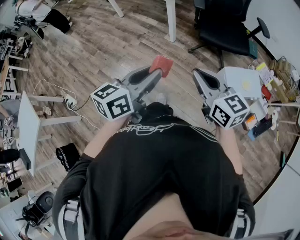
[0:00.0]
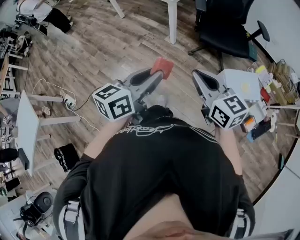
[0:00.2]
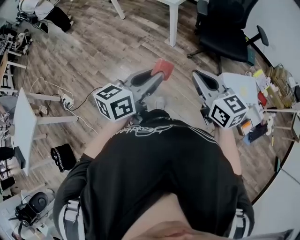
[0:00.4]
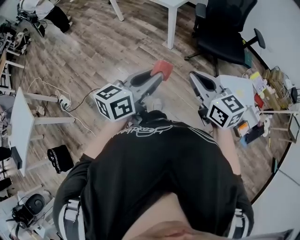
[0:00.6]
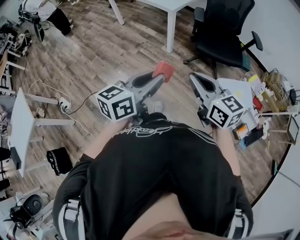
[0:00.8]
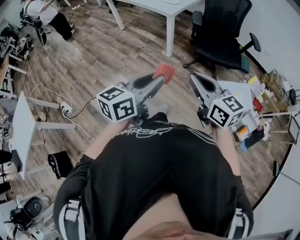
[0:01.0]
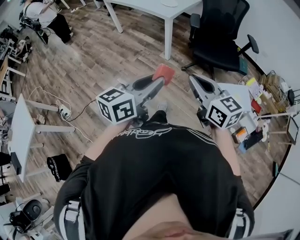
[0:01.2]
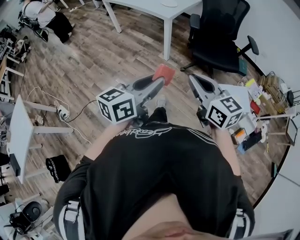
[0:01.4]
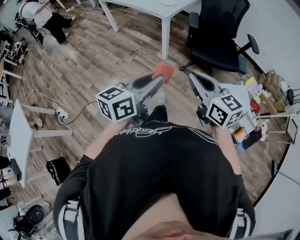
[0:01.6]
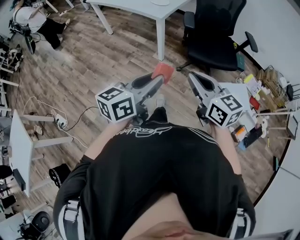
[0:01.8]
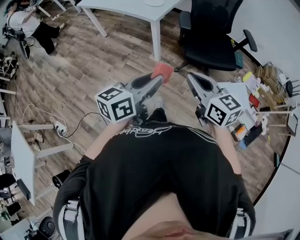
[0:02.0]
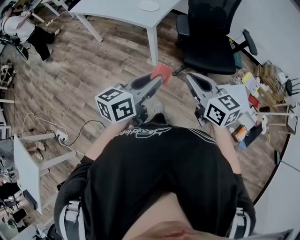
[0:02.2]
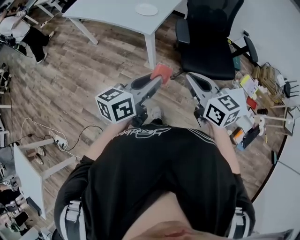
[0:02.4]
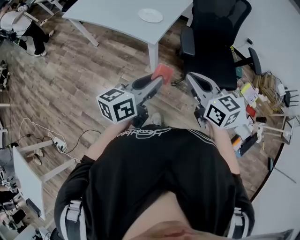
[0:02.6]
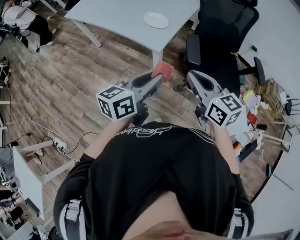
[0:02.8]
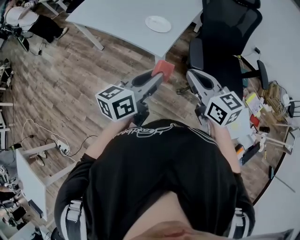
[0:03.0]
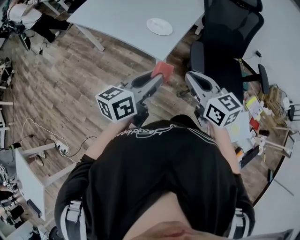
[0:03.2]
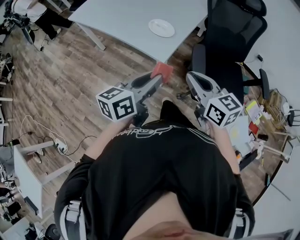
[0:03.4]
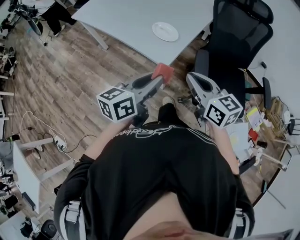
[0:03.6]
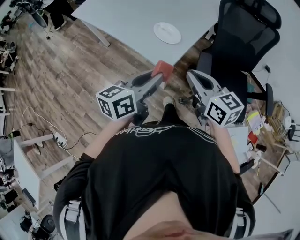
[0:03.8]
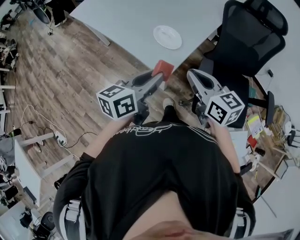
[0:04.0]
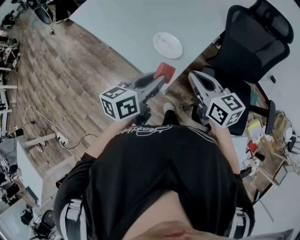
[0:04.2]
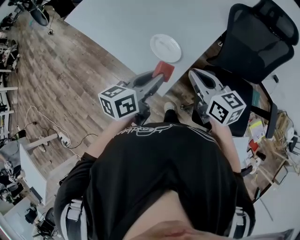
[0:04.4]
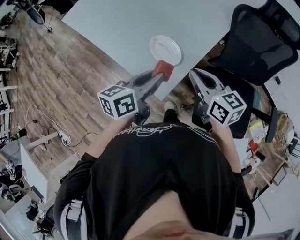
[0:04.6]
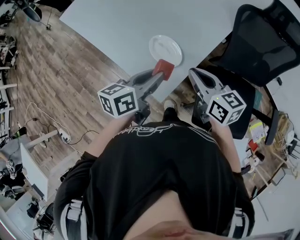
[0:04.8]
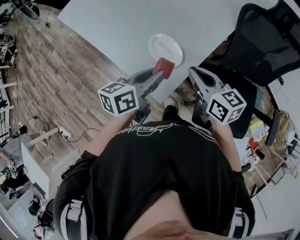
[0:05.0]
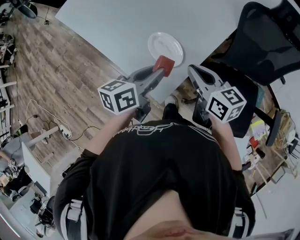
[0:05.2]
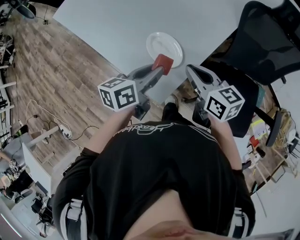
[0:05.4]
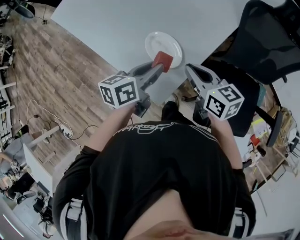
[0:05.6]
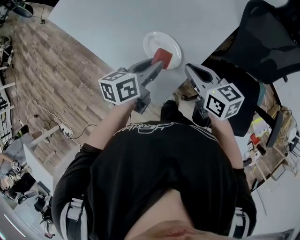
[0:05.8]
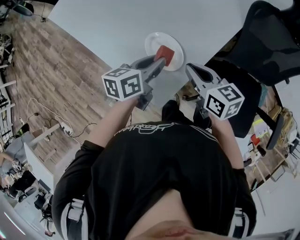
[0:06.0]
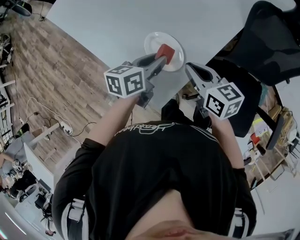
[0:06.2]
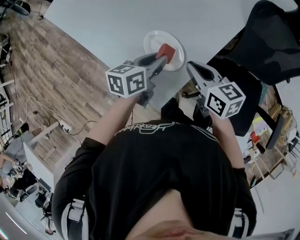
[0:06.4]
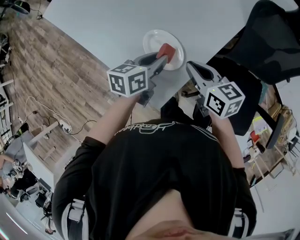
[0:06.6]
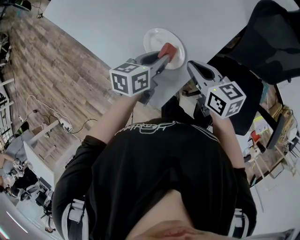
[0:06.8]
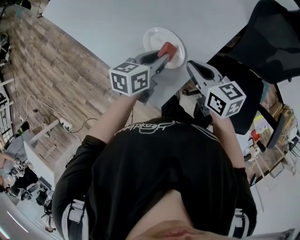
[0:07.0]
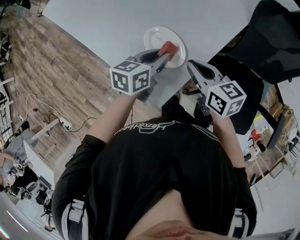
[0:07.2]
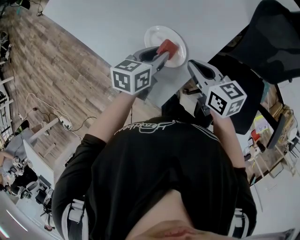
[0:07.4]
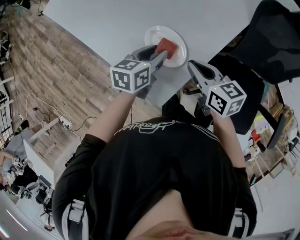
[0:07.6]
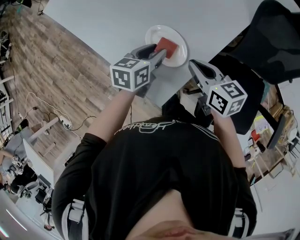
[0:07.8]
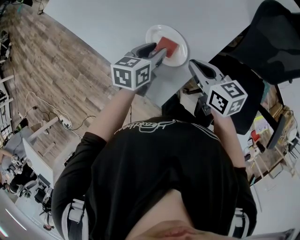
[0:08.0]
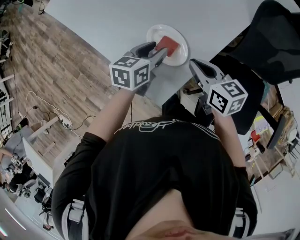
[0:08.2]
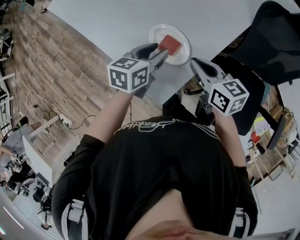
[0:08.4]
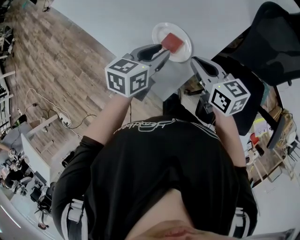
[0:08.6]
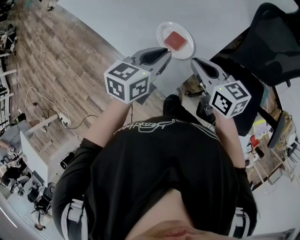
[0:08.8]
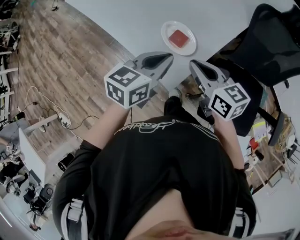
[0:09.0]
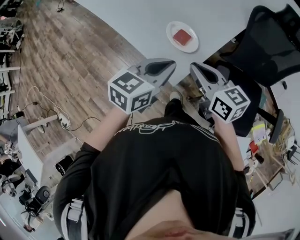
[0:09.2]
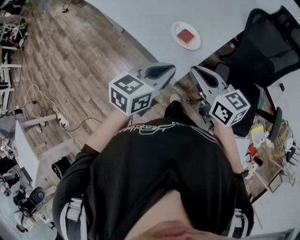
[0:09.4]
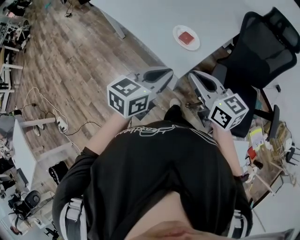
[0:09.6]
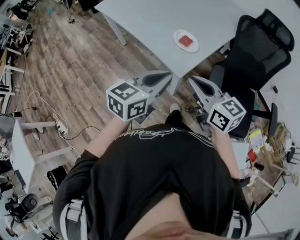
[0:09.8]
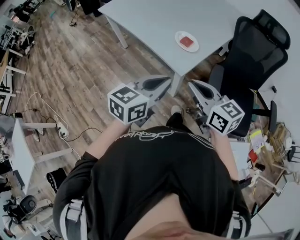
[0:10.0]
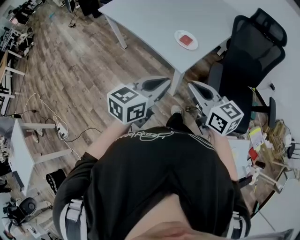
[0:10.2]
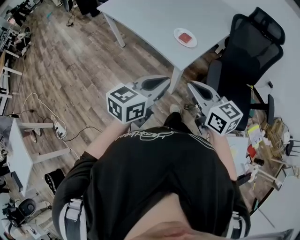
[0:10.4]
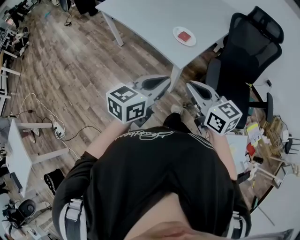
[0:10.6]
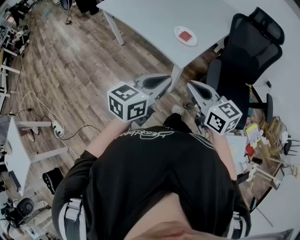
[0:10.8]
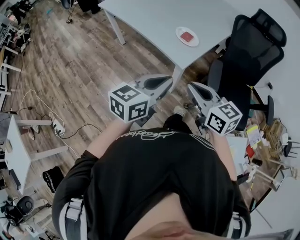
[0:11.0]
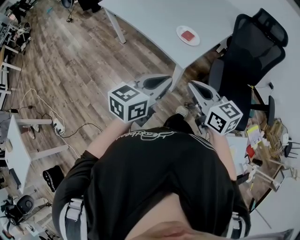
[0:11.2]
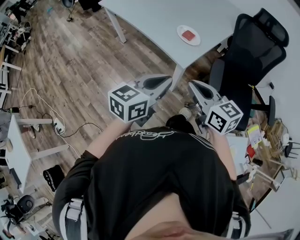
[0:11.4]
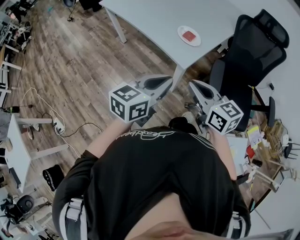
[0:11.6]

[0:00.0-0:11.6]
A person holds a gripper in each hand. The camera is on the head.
0:00.0 to 0:01.4: The grippers stay close to where they were, moving slightly.
0:01.4 to 0:02.8: The two grippers travel together, forward, roughly 40 cm.
0:02.8 to 0:04.4: The grippers both shift forward by approximately 30 cm.
0:04.4 to 0:05.8: The right gripper travels downward and forward by approximately 10 cm. The left gripper goes approximately 15 cm forward and downward.
0:05.8 to 0:07.2: The left gripper travels downward by about 5 cm.
0:07.2 to 0:08.8: The left gripper heads upward, covering some 10 cm, and opens and closes again. The right gripper changes place by some 5 cm.
0:08.8 to 0:10.2: The grippers both shift backward and upward by approximately 30 cm.
0:10.2 to 0:11.6: There are only small adjustments of the grippers.

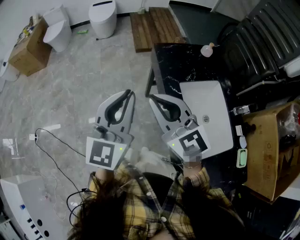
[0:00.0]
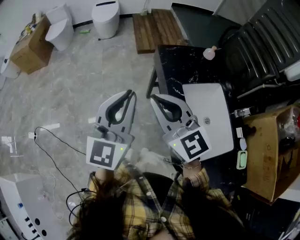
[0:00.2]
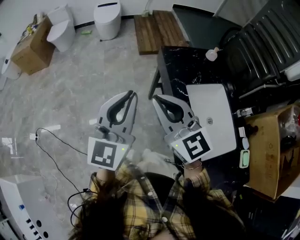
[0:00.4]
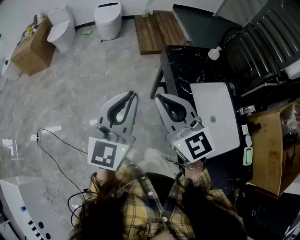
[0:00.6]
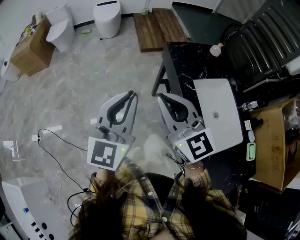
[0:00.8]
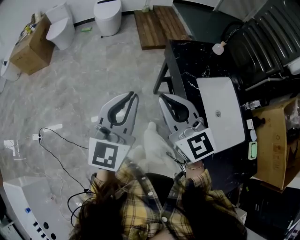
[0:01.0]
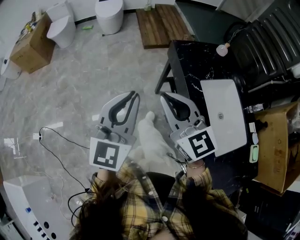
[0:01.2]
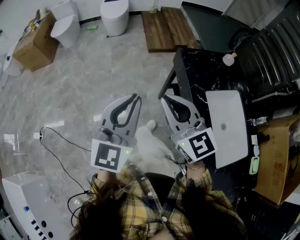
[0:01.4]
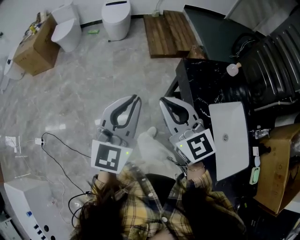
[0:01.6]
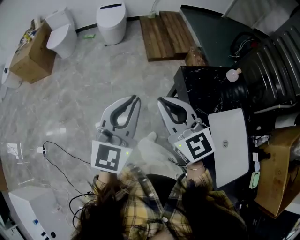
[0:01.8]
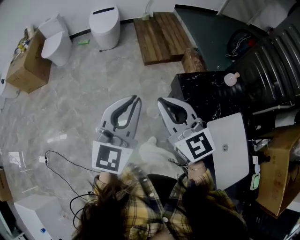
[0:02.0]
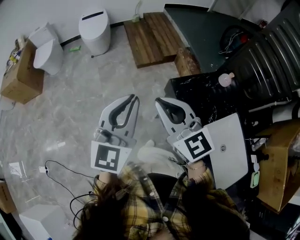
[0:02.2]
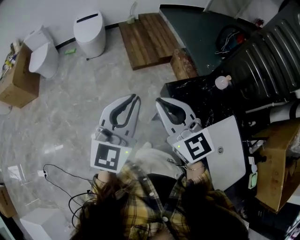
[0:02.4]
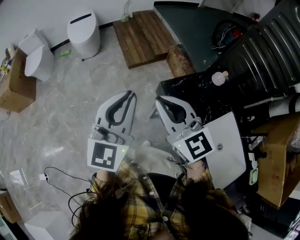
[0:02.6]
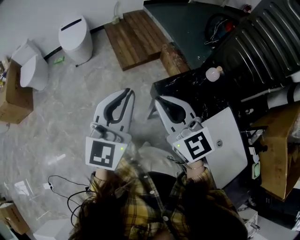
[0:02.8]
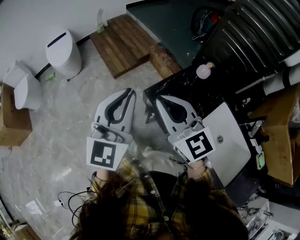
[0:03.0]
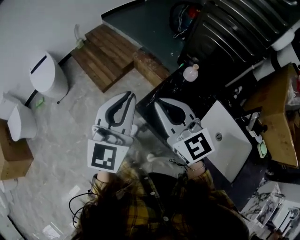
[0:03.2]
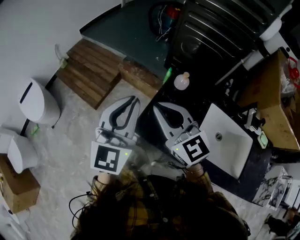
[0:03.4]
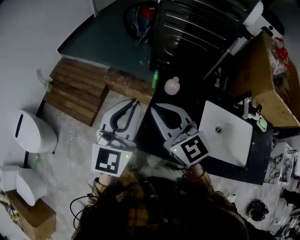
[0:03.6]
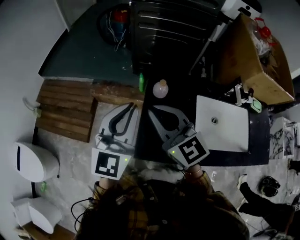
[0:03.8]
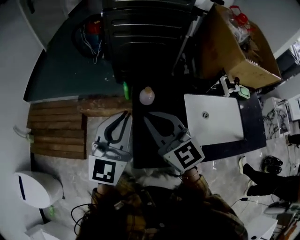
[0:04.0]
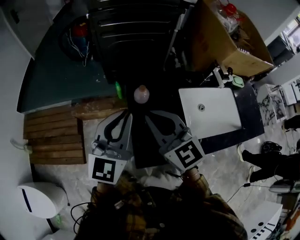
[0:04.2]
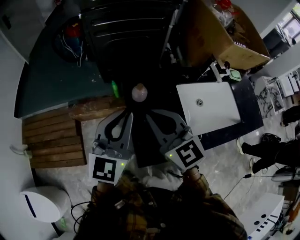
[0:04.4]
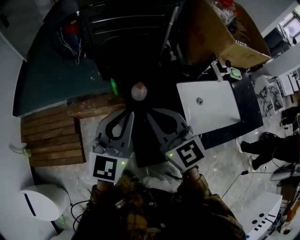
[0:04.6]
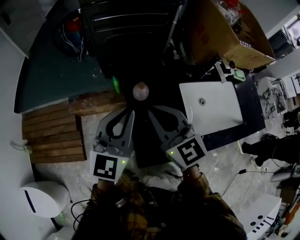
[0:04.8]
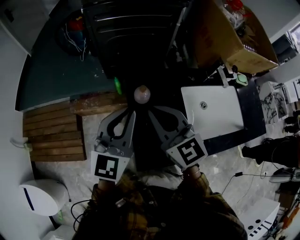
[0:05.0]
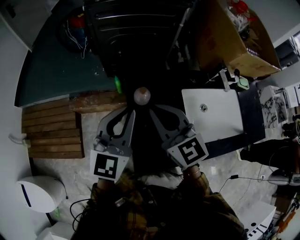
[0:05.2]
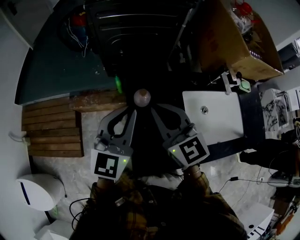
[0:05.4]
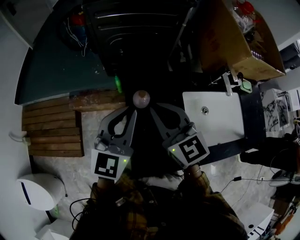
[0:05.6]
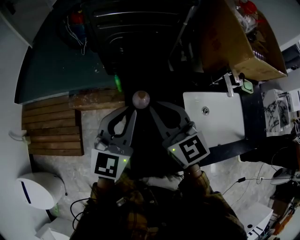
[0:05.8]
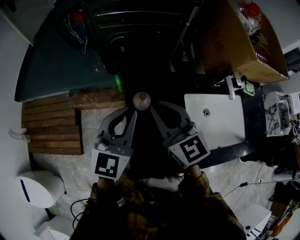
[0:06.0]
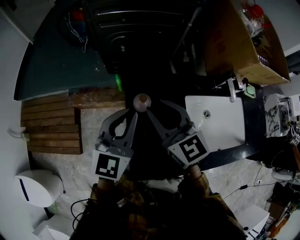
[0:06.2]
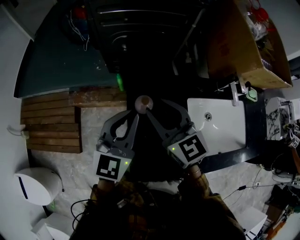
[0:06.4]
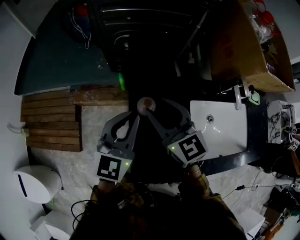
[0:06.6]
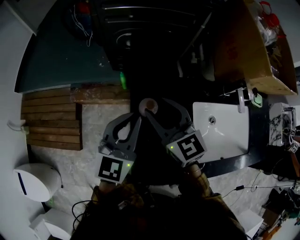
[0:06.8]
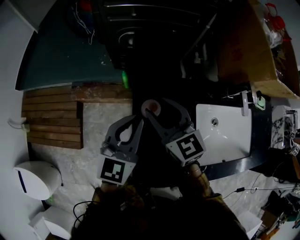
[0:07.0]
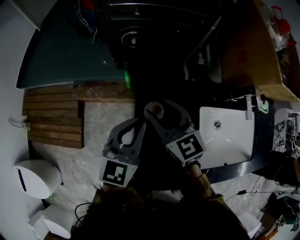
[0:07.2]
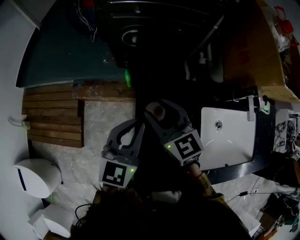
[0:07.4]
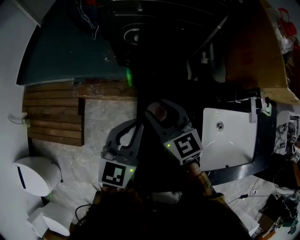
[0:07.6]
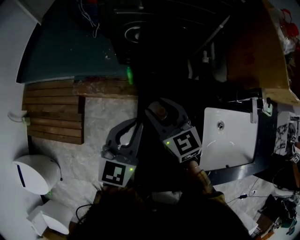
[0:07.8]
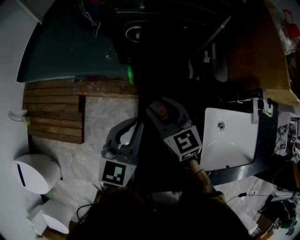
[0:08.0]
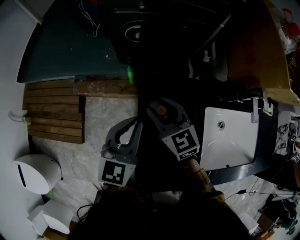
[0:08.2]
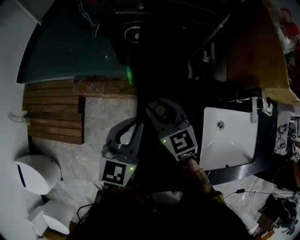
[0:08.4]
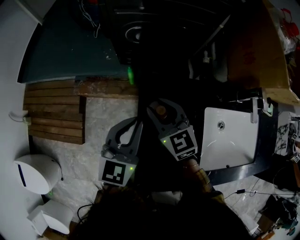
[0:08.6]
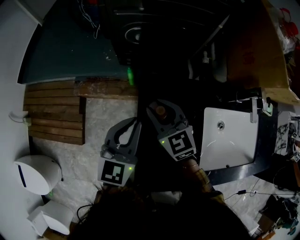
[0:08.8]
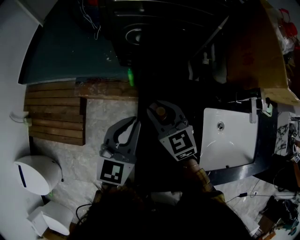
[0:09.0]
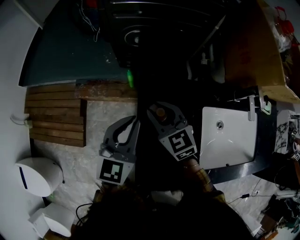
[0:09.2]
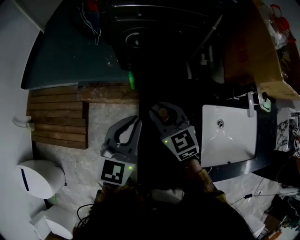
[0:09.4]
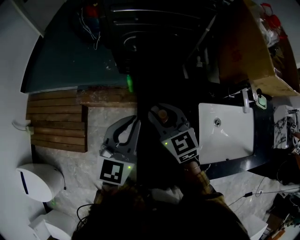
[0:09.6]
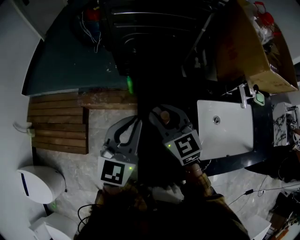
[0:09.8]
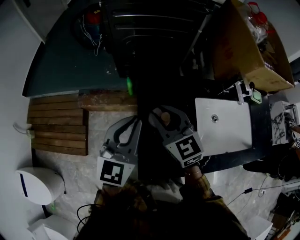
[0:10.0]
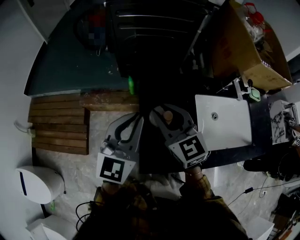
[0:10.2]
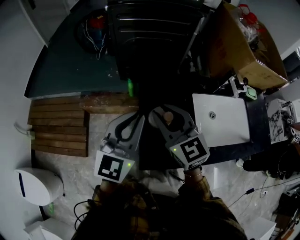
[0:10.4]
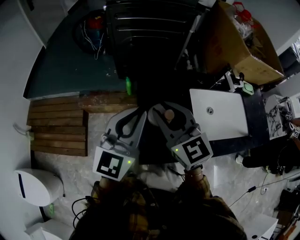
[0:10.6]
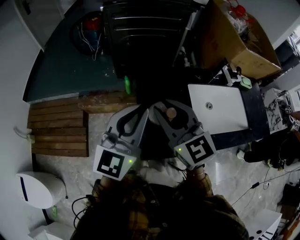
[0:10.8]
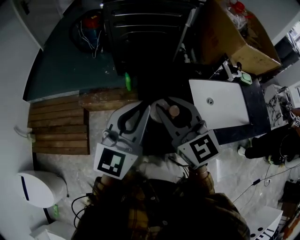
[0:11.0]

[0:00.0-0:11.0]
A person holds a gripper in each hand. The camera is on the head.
0:00.0 to 0:01.6: The right gripper travels forward and to the left by roughly 15 cm. The left gripper goes approximately 15 cm to the left and forward.
0:01.6 to 0:03.2: The left gripper ends up approximately 35 cm from where it was, and changes its angle by approximately 30 degrees. The right gripper moves some 30 cm, and changes its angle by some 30 degrees.
0:03.2 to 0:04.8: The right gripper moves about 20 cm, and swivels roughly 50 degrees. Meanwhile the left gripper changes place by roughly 25 cm, and rotates some 60 degrees.
0:04.8 to 0:06.2: The two grippers go approximately 10 cm forward. The right gripper opens its fingers.
0:06.2 to 0:07.8: The left gripper moves downward, about 10 cm; the right gripper moves downward and forward, roughly 15 cm.
0:07.8 to 0:09.4: The grippers move only a little.
0:09.4 to 0:11.0: Both grippers travel together backward and upward, approximately 25 cm. The left gripper turns by approximately 20 degrees.

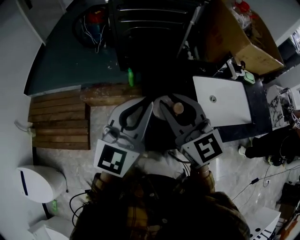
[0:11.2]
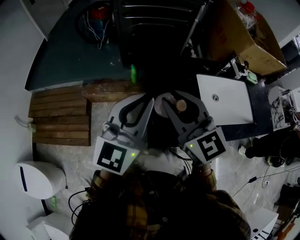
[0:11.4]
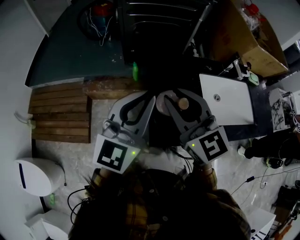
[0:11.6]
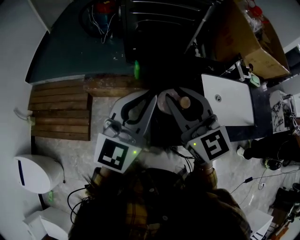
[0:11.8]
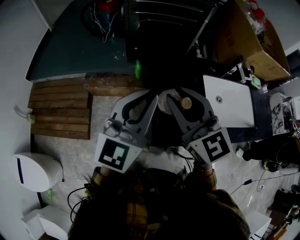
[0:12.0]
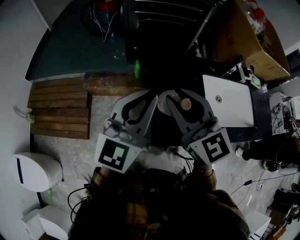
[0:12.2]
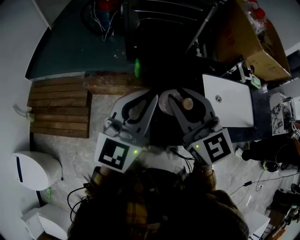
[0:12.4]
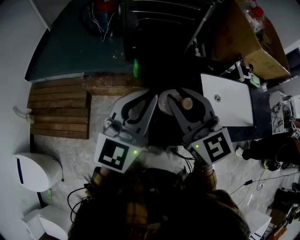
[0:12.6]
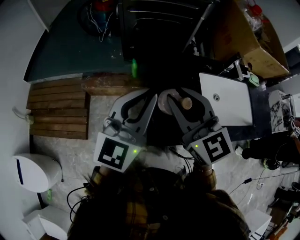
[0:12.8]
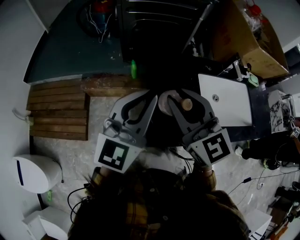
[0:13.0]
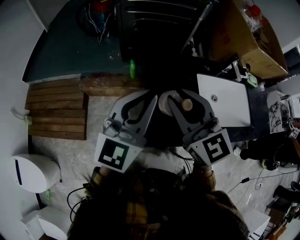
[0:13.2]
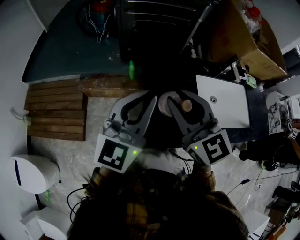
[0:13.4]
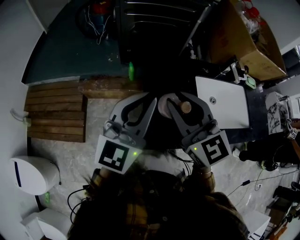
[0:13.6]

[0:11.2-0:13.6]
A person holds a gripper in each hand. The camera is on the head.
0:11.2 to 0:13.6: The grippers make only small movements.
